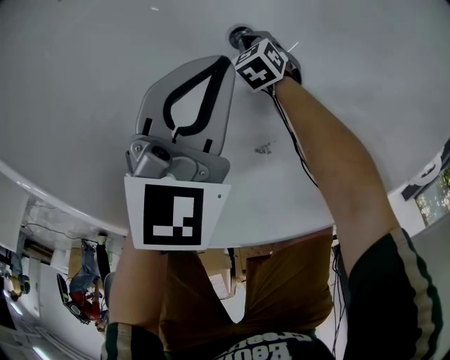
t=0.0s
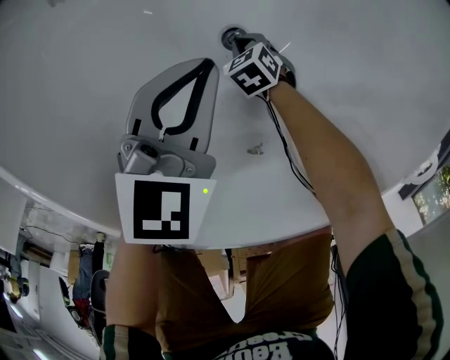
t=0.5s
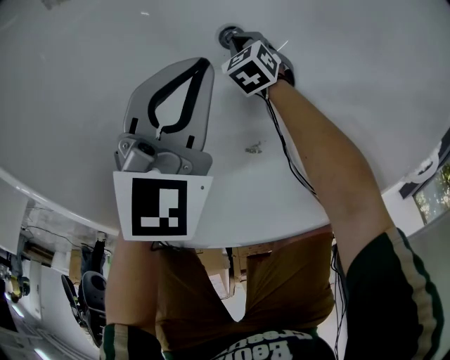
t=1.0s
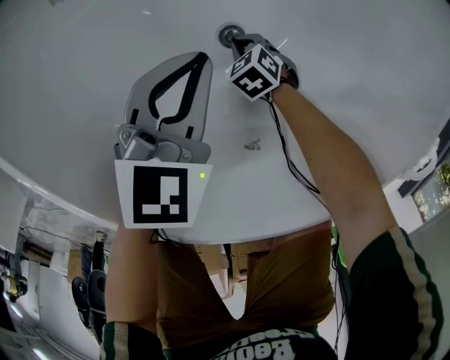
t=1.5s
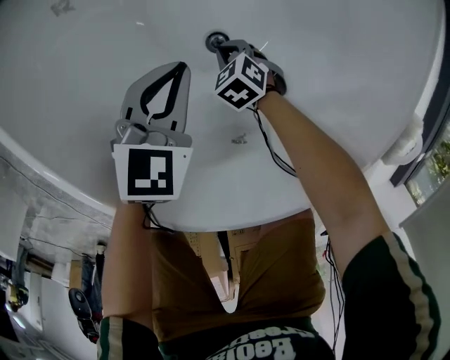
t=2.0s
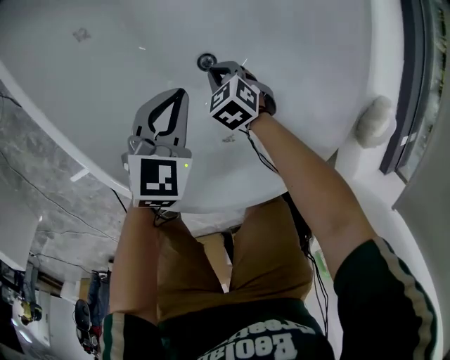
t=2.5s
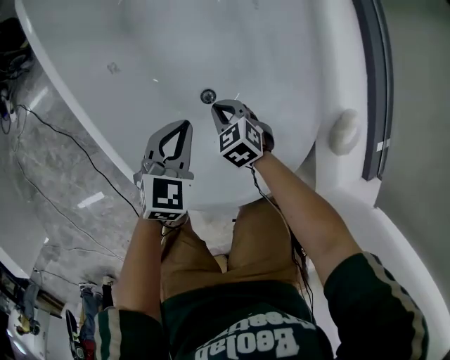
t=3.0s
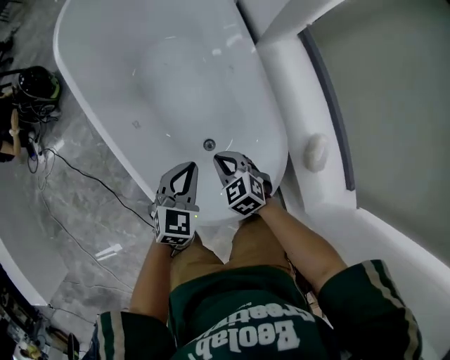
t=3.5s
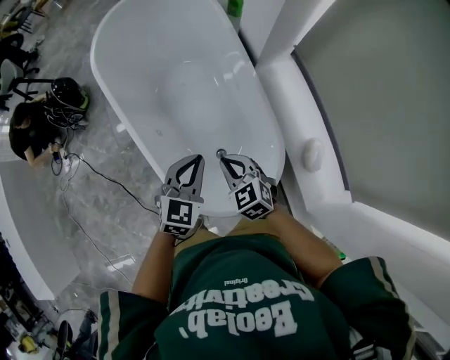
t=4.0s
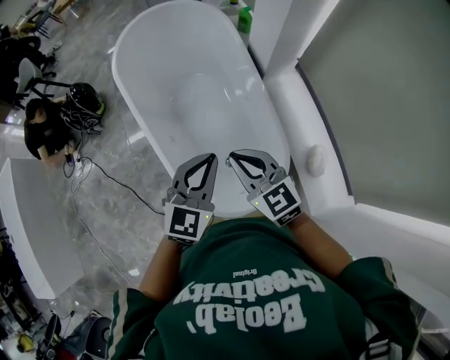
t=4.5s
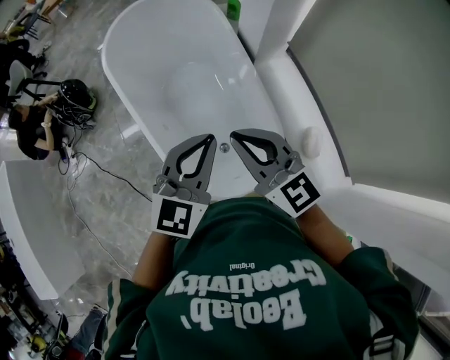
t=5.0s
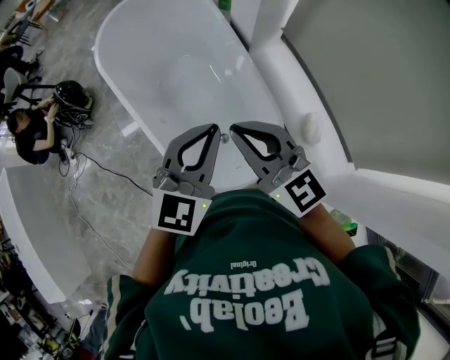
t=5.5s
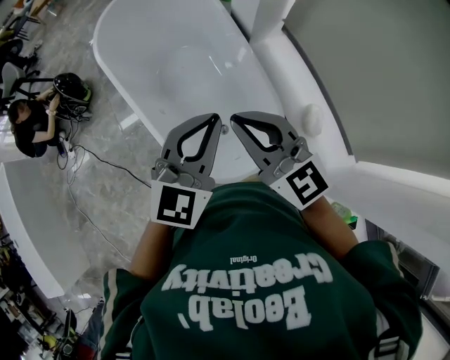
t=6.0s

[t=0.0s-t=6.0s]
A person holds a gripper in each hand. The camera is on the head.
t=0.0s to t=2.0s: The right gripper shifts about 10 cm upward.
t=2.0s to t=4.0s: Both grippers travel together upward, some 50 cm. The left gripper changes its angle by some 20 degrees. Meanwhile the right gripper angles its fingers upward, by roughly 30 degrees.
t=4.0s to t=6.0s: The two grippers go approximately 20 cm upward. The left gripper rotates roughly 20 degrees; the right gripper points its fingers roughly 40 degrees further upward.

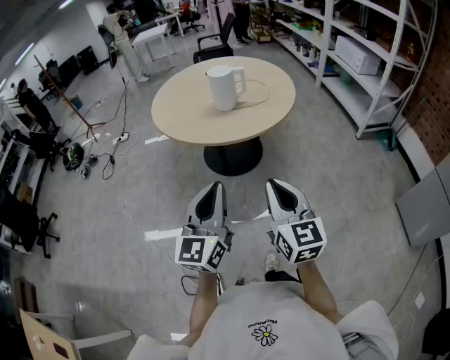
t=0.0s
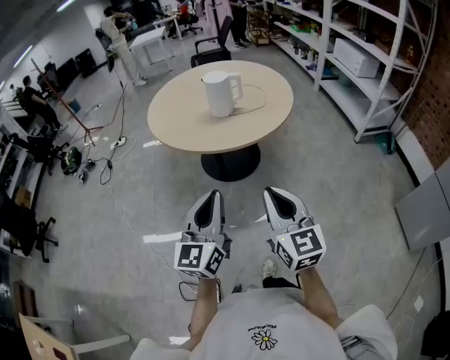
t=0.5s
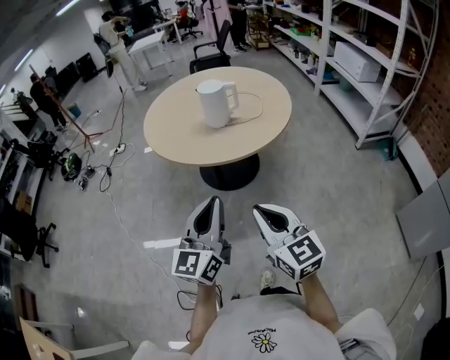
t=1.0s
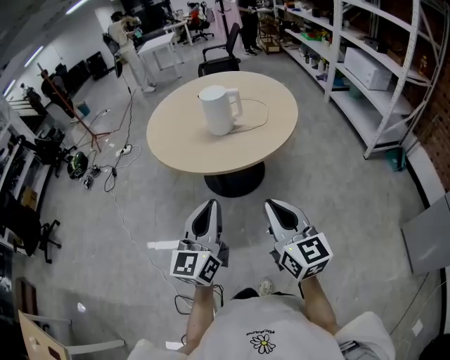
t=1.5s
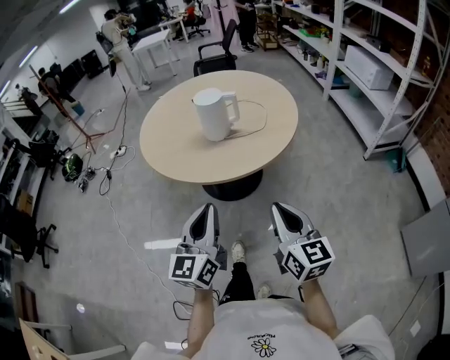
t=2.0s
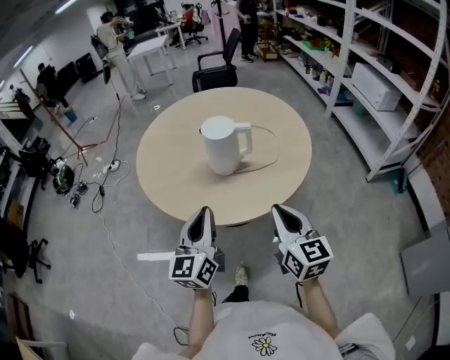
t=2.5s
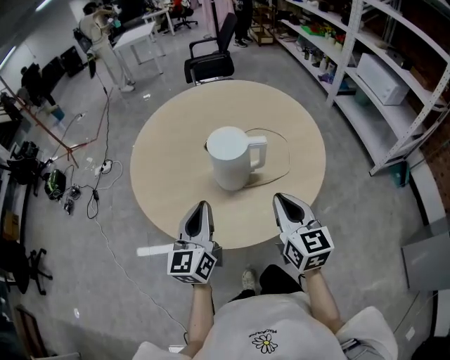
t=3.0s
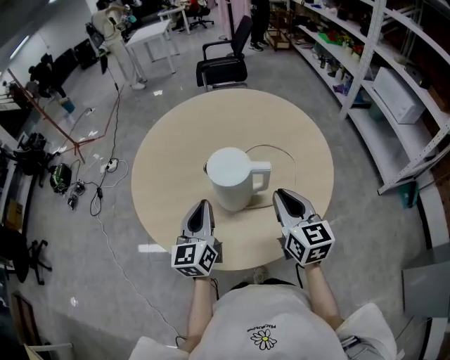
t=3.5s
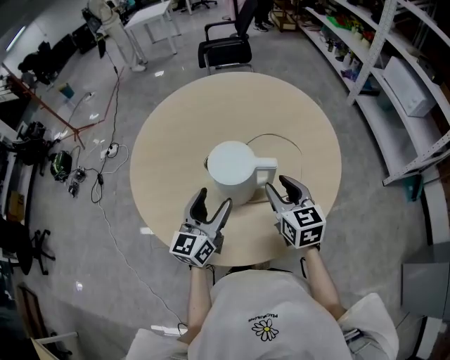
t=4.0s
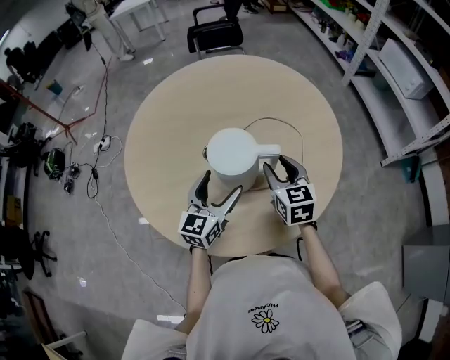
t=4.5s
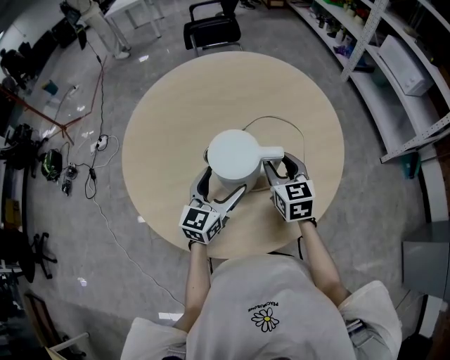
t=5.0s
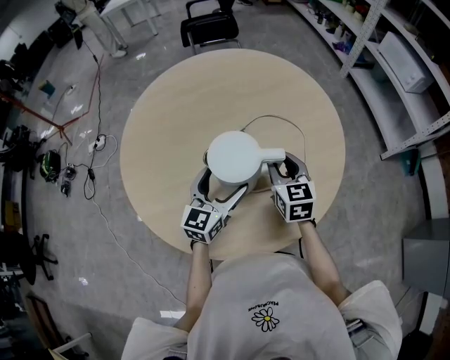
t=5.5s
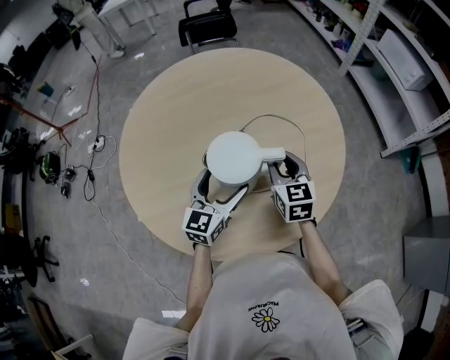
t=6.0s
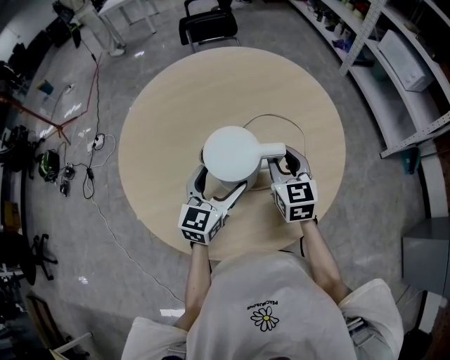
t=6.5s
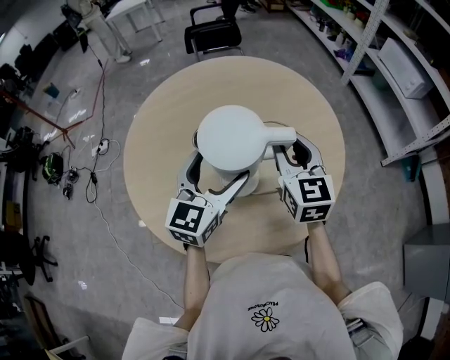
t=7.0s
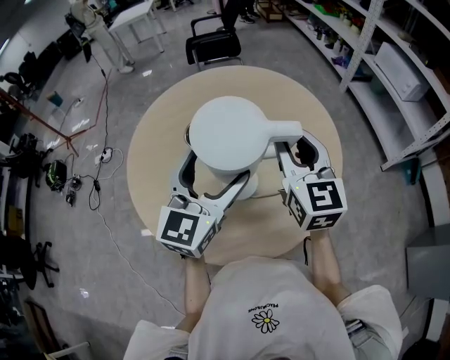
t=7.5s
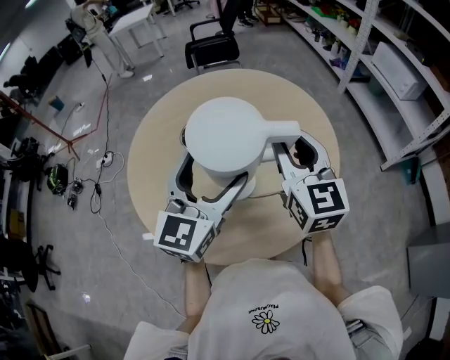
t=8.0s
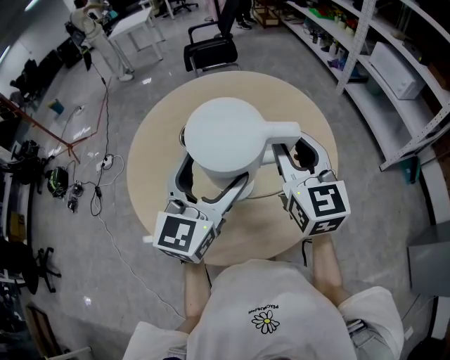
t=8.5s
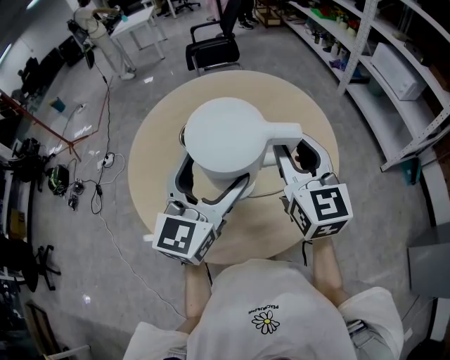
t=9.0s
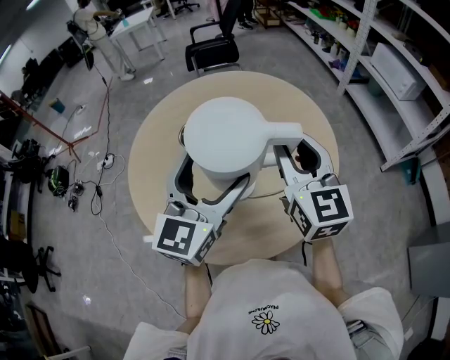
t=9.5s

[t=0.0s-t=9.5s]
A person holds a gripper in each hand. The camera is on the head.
t=0.0s to t=2.0s: The right gripper shifts about 20 cm forward and to the right. The left gripper moves forward, approximately 20 cm.
t=2.0s to t=4.0s: The pair of grippers is taken forward, approximately 50 cm. The left gripper opens; the right gripper opens.
t=4.0s to t=5.5s: The left gripper goes roughly 10 cm forward and downward. Meanwhile the right gripper goes some 5 cm forward.
t=5.5s to t=7.5s: The two grippers go some 20 cm upward.
t=7.5s to t=9.5s: There are only small adjustments of the grippers.

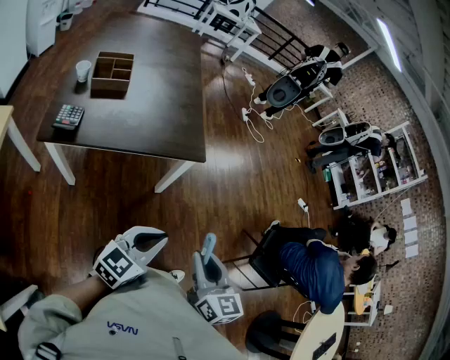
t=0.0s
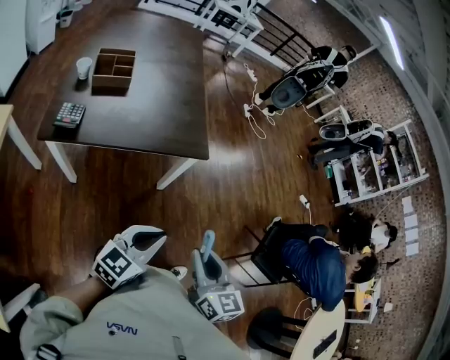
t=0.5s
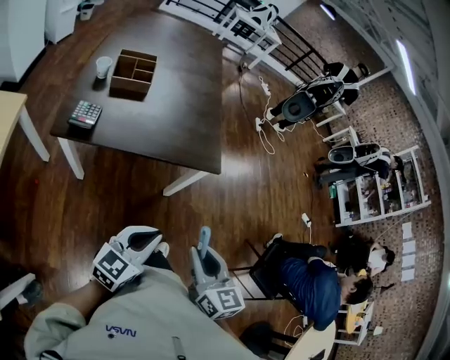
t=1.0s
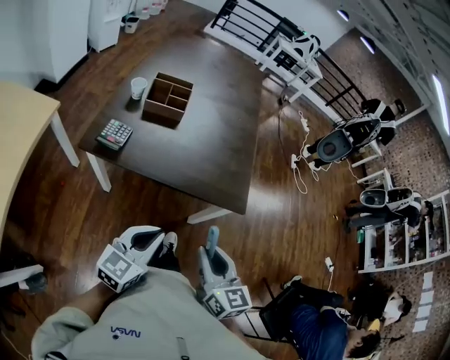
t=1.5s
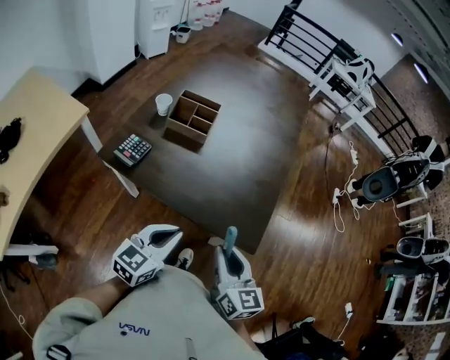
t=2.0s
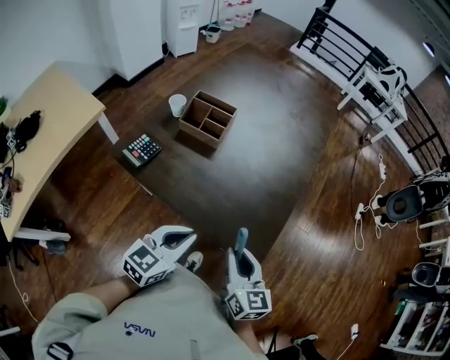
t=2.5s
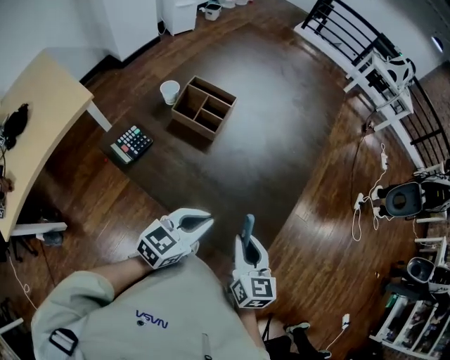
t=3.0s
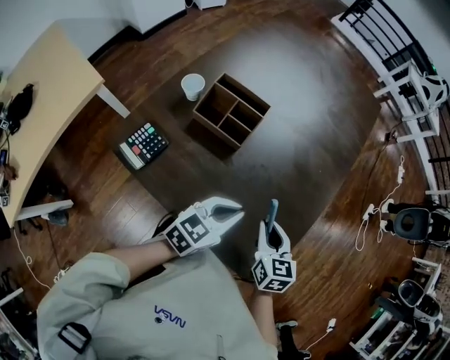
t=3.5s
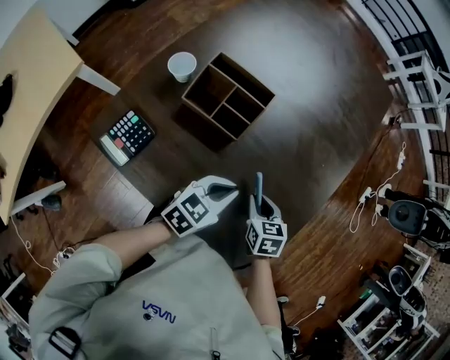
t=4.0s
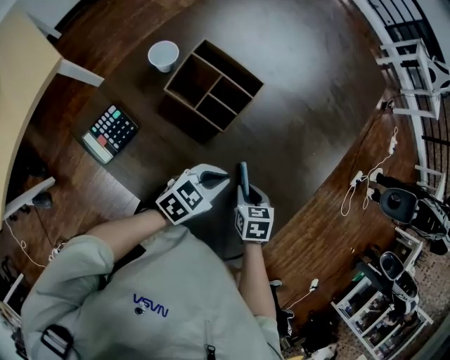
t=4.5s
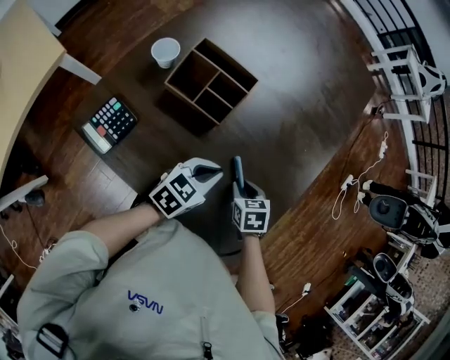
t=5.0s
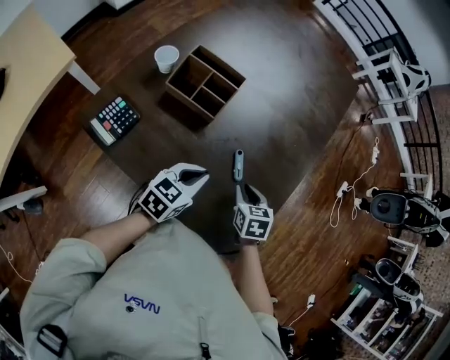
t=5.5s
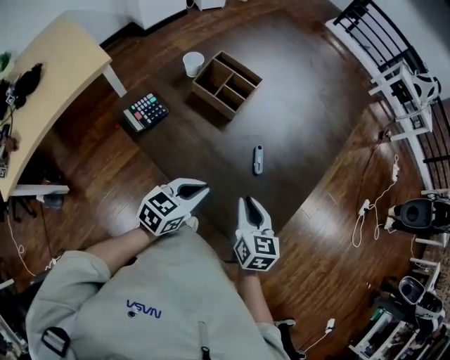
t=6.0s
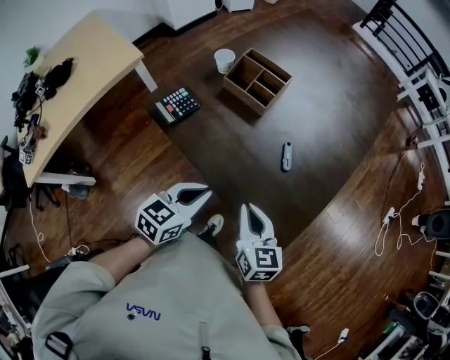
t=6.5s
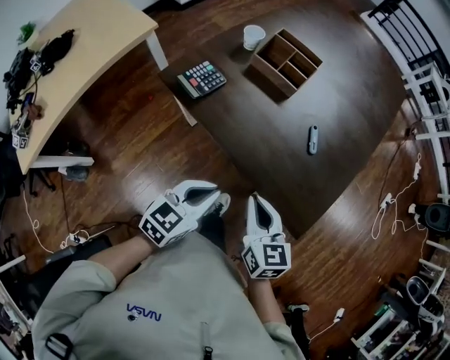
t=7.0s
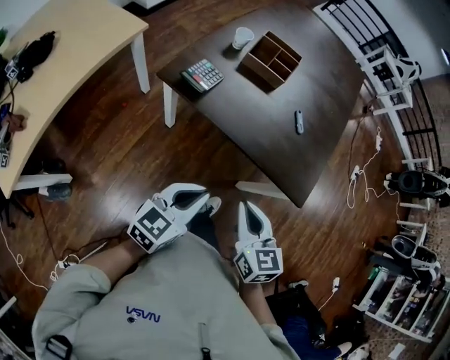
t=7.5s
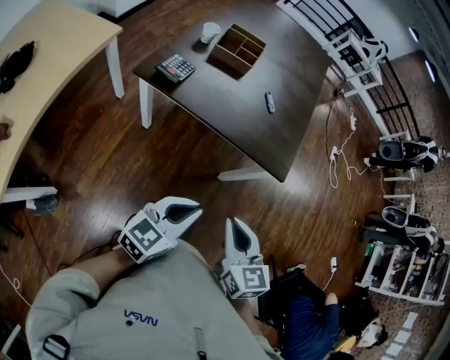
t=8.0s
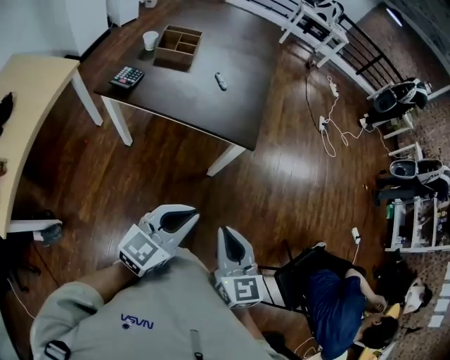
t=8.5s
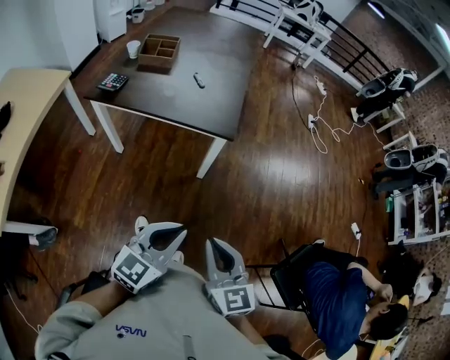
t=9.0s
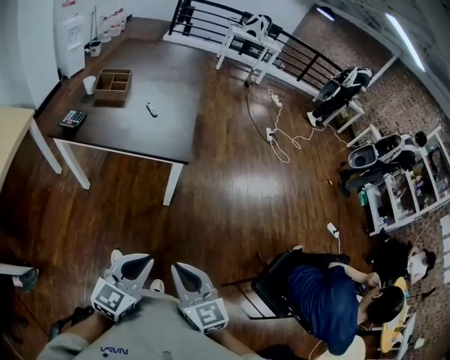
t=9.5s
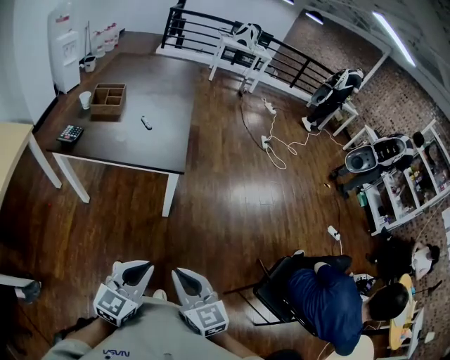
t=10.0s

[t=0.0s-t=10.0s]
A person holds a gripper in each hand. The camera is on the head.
t=0.0s to t=2.0s: The right gripper shifts by roughly 30 cm, and turns by about 30 degrees, while the left gripper shifts by roughly 25 cm, and rotates roughly 40 degrees.
t=2.0s to t=4.0s: The grippers both shift forward and downward by about 30 cm. The right gripper tilts its fingers about 40 degrees downward.
t=4.0s to t=6.0s: The right gripper moves backward and upward, about 15 cm, and rotates roughly 30 degrees; the left gripper is displaced backward by approximately 15 cm.
t=6.0s to t=8.0s: The two grippers go approximately 35 cm backward. The left gripper changes its angle by about 20 degrees.
t=8.0s to t=10.0s: Both grippers move to the right and backward, approximately 25 cm.

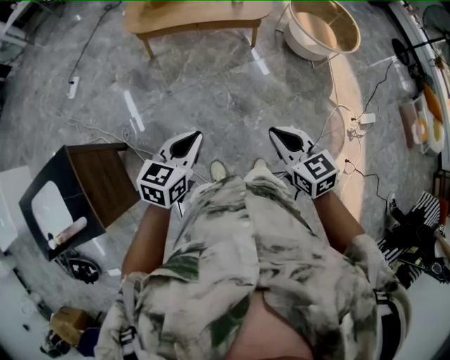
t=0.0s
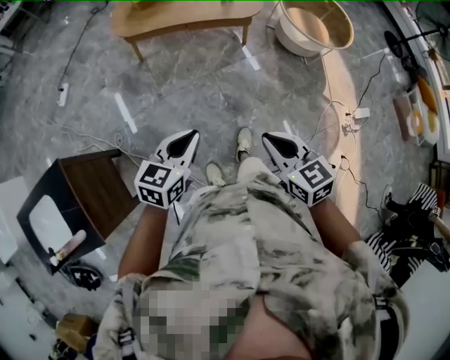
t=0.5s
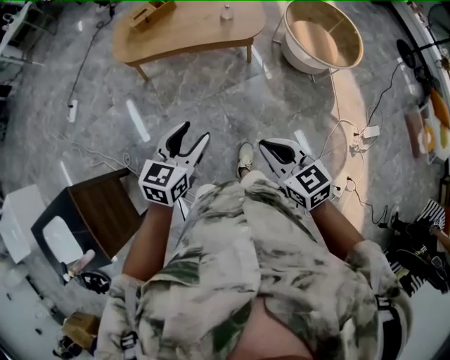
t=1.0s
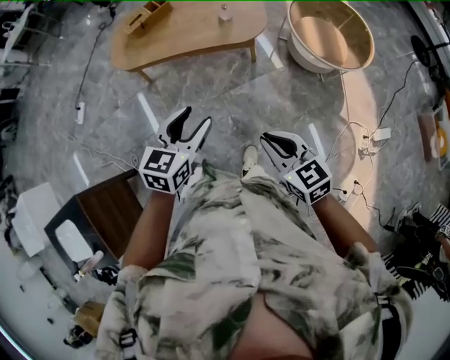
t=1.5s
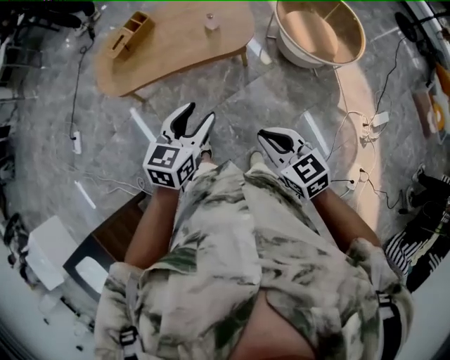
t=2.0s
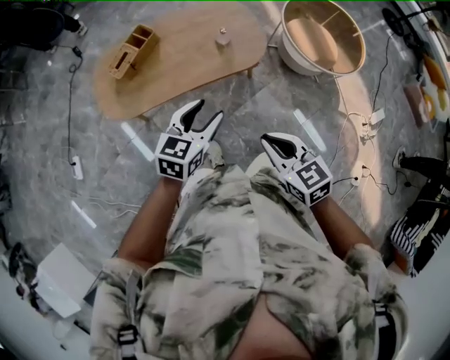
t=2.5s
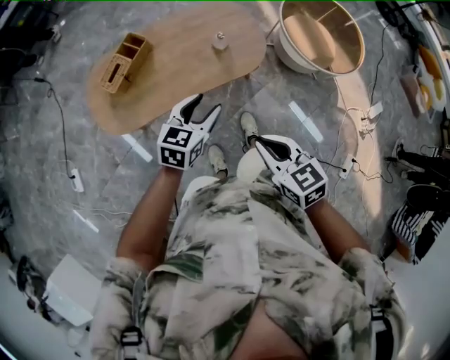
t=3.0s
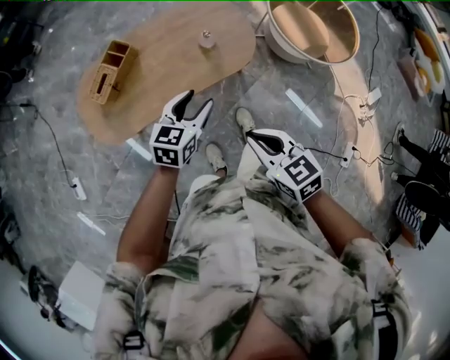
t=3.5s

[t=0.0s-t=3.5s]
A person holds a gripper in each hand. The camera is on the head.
t=0.0s to t=2.0s: Both grippers travel together forward, some 40 cm. The left gripper opens its fingers.
t=2.0s to t=3.5s: The right gripper moves forward and to the left, approximately 25 cm. Meanwhile the left gripper heads forward, downward and to the left, covering approximately 30 cm.
